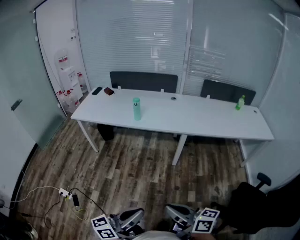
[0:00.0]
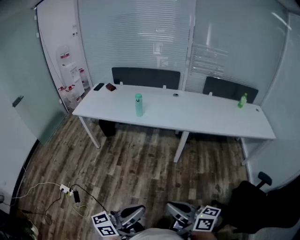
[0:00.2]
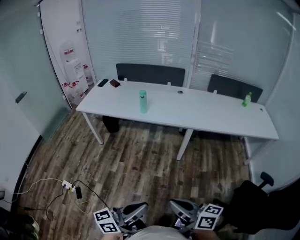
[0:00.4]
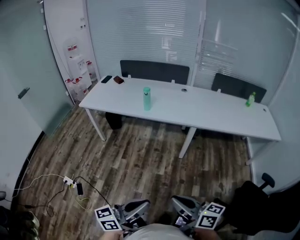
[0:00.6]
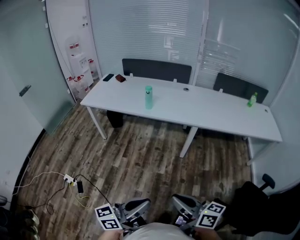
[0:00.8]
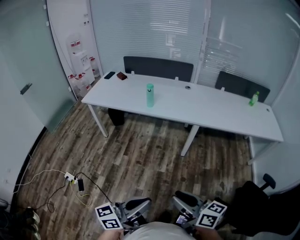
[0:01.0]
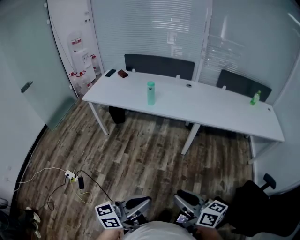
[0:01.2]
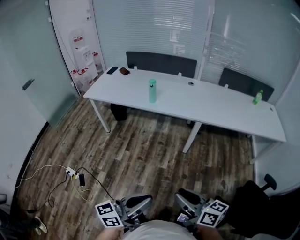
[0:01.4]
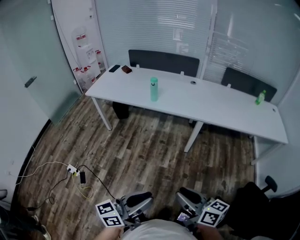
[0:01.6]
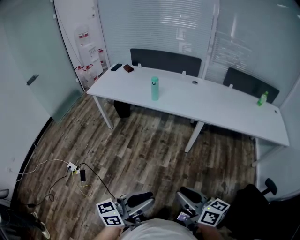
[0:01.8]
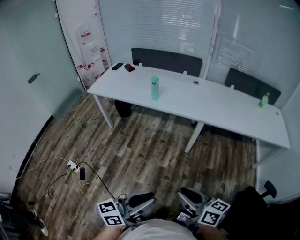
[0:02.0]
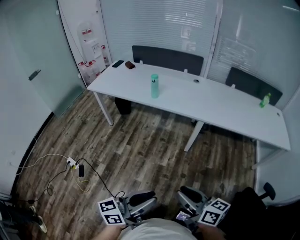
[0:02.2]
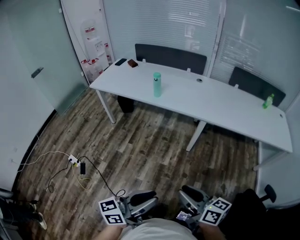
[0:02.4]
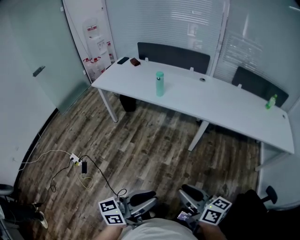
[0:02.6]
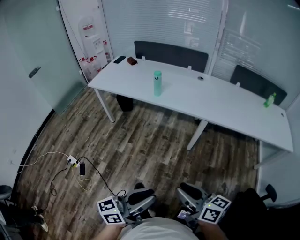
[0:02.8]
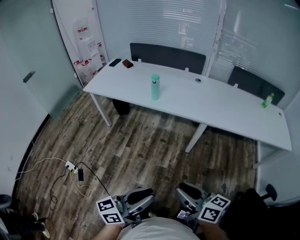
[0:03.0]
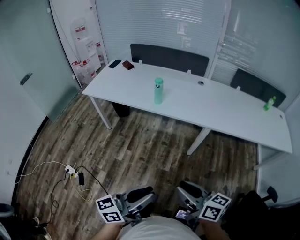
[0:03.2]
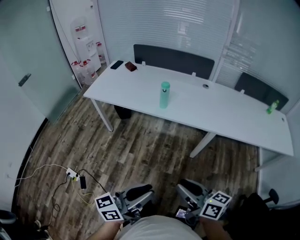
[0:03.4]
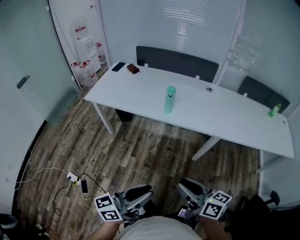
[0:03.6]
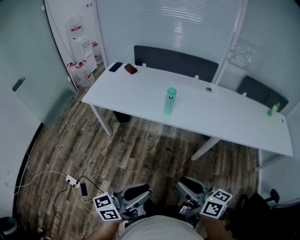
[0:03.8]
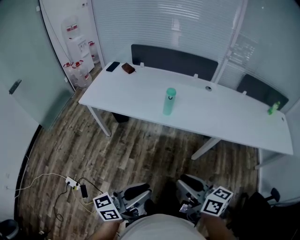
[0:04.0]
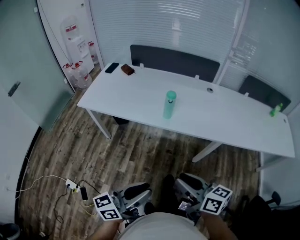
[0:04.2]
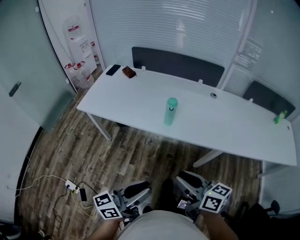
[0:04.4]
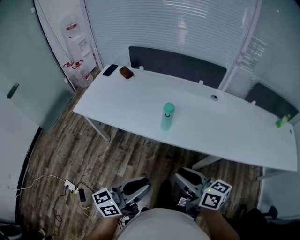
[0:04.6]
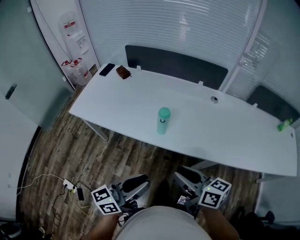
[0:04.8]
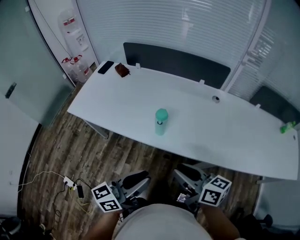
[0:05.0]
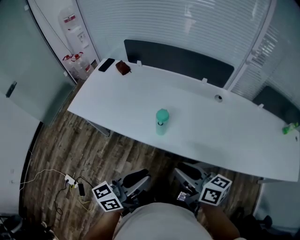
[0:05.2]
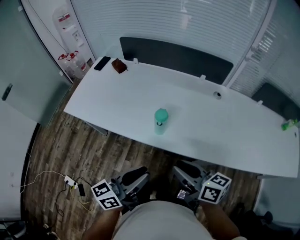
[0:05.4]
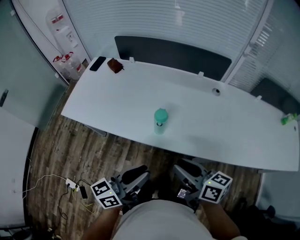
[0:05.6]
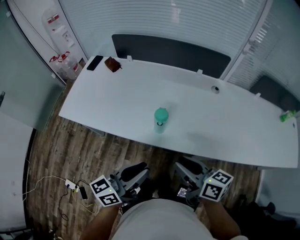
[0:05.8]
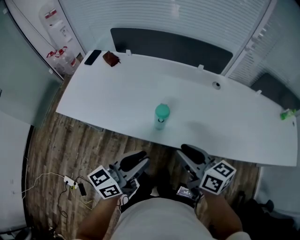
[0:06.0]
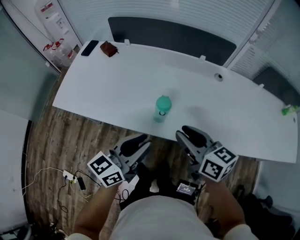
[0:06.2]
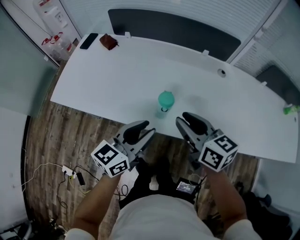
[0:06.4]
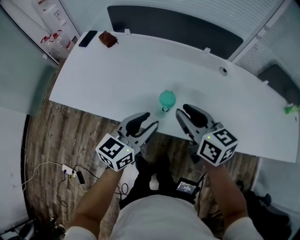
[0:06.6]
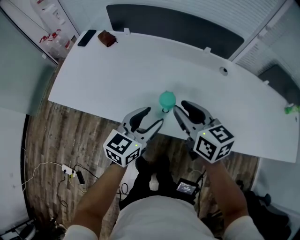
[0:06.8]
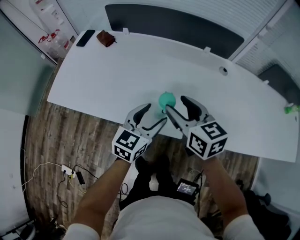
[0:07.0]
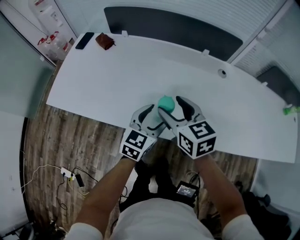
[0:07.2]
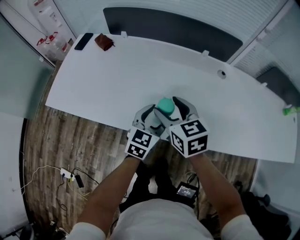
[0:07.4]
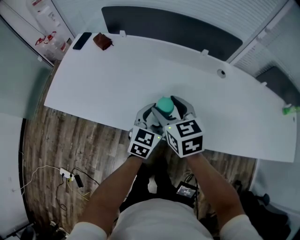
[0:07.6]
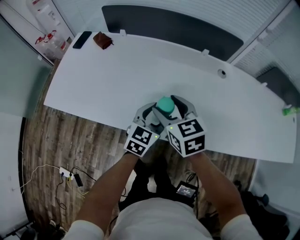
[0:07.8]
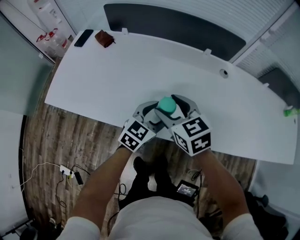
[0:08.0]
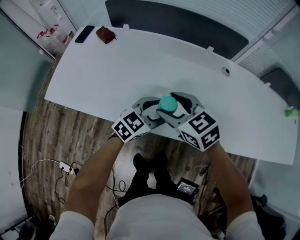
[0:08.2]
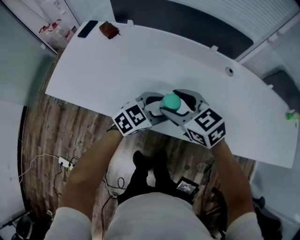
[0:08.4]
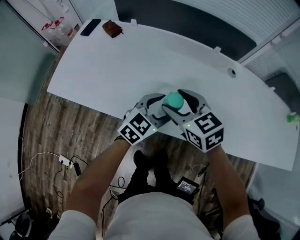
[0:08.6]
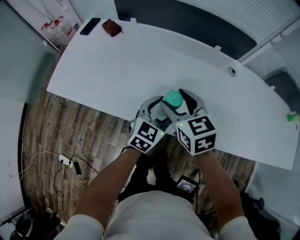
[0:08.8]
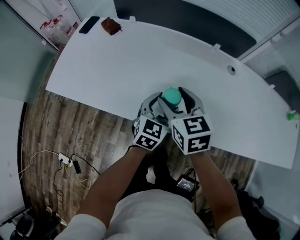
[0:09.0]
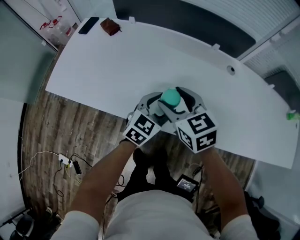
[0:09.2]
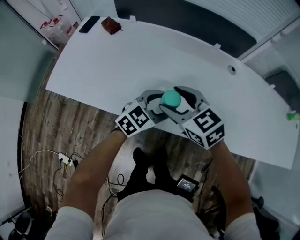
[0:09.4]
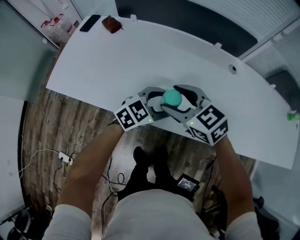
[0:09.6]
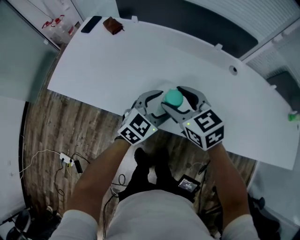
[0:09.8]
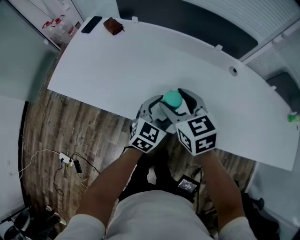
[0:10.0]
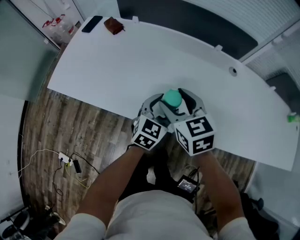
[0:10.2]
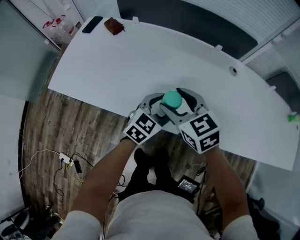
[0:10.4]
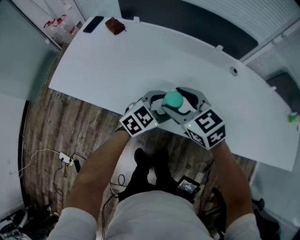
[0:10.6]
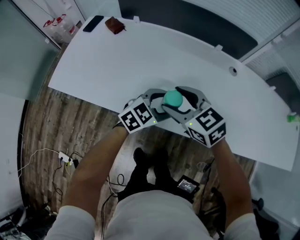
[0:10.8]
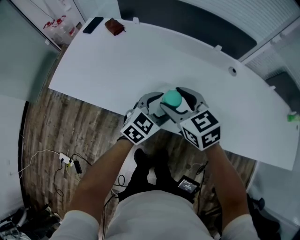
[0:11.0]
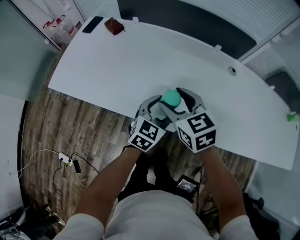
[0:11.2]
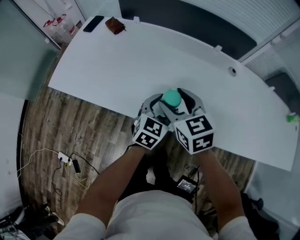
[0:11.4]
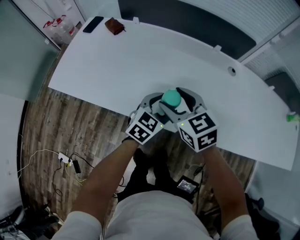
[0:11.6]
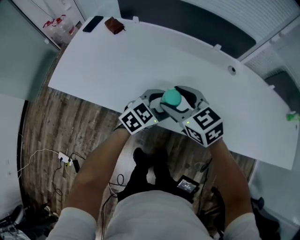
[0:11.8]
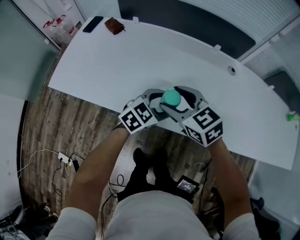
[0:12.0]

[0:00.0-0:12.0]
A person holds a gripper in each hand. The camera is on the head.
0:00.0 to 0:01.6: The right gripper changes place by about 5 cm, and opens its fingers.
0:01.6 to 0:03.0: Both grippers travel together forward, approximately 10 cm.
0:03.0 to 0:04.4: Both grippers move forward and to the left, approximately 30 cm.
0:04.4 to 0:06.0: The two grippers go approximately 25 cm forward.
0:06.0 to 0:07.6: The left gripper is displaced forward and downward by about 25 cm, turns by approximately 40 degrees, and opens its fingers; the right gripper moves forward, to the left and downward, approximately 20 cm, turns by roughly 30 degrees, and opens its fingers.
0:10.4 to 0:12.0: The grippers move only a little.

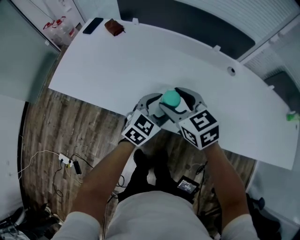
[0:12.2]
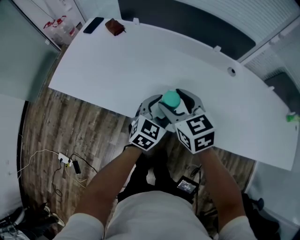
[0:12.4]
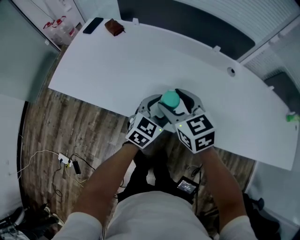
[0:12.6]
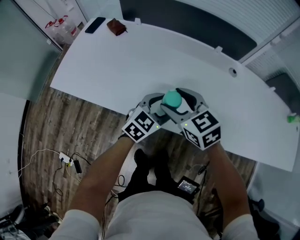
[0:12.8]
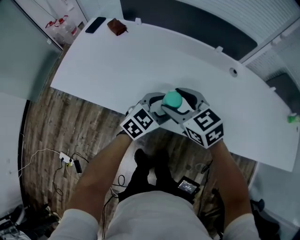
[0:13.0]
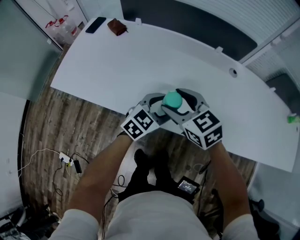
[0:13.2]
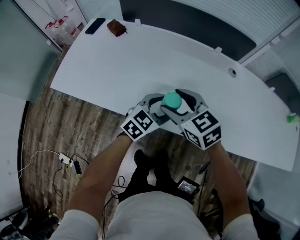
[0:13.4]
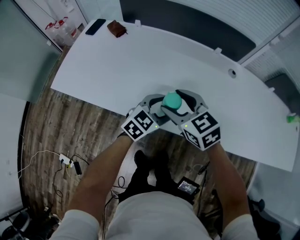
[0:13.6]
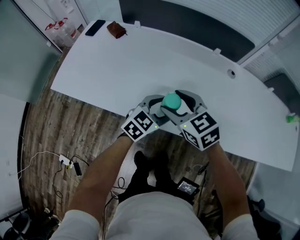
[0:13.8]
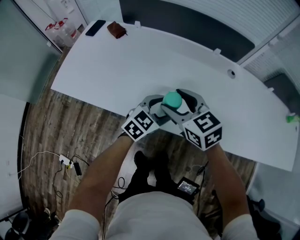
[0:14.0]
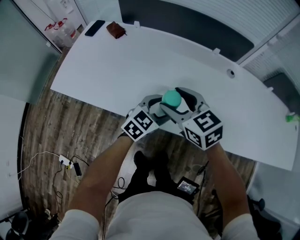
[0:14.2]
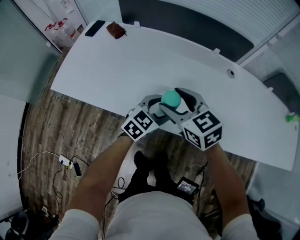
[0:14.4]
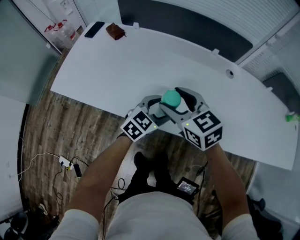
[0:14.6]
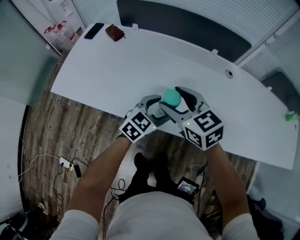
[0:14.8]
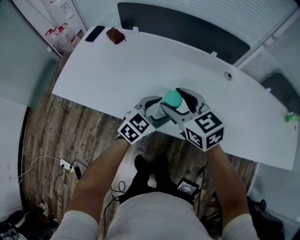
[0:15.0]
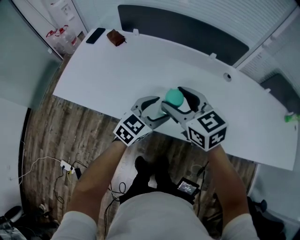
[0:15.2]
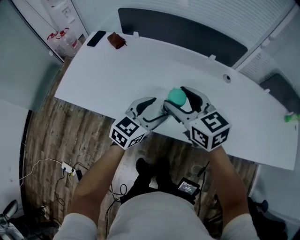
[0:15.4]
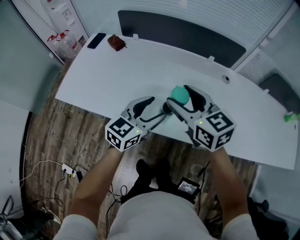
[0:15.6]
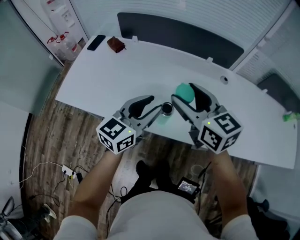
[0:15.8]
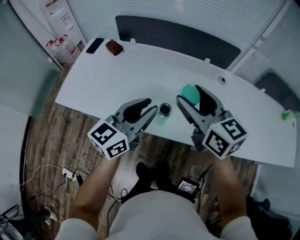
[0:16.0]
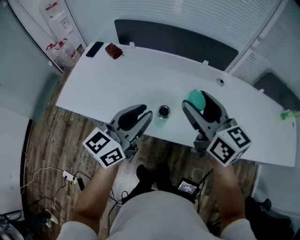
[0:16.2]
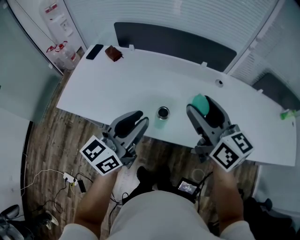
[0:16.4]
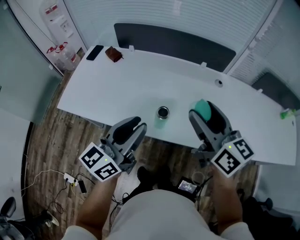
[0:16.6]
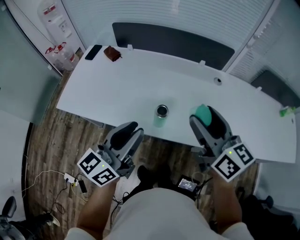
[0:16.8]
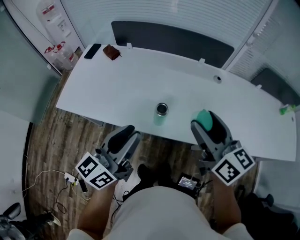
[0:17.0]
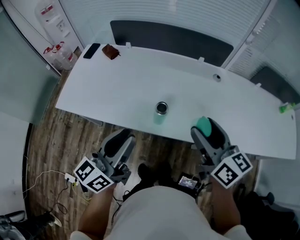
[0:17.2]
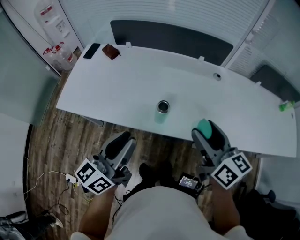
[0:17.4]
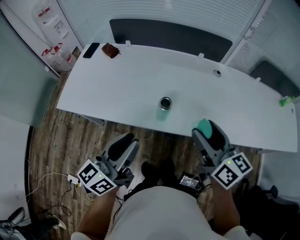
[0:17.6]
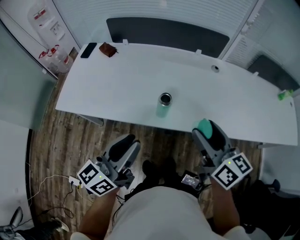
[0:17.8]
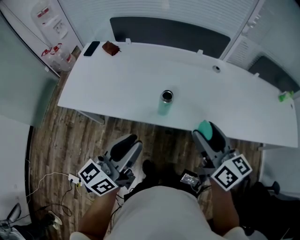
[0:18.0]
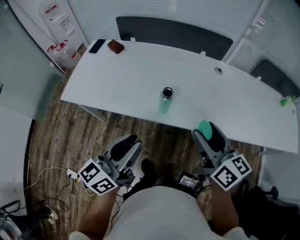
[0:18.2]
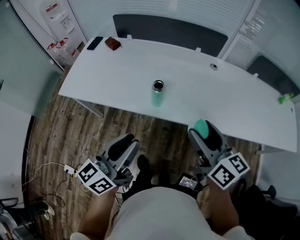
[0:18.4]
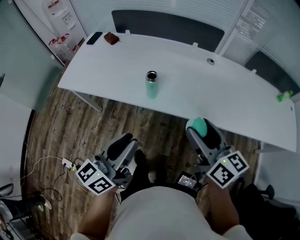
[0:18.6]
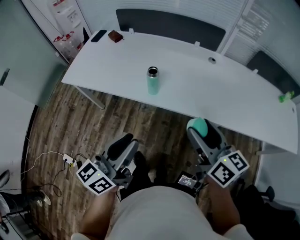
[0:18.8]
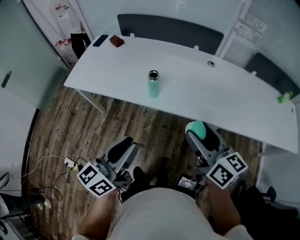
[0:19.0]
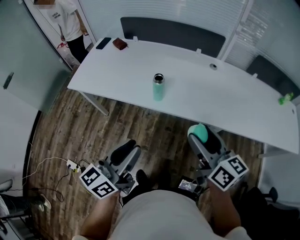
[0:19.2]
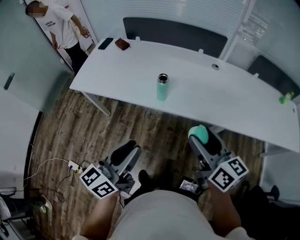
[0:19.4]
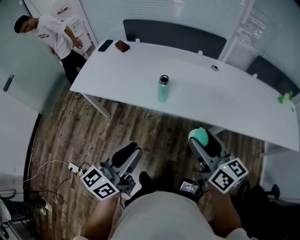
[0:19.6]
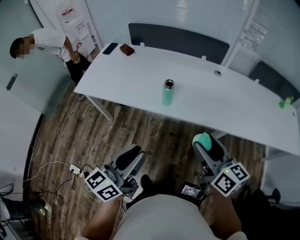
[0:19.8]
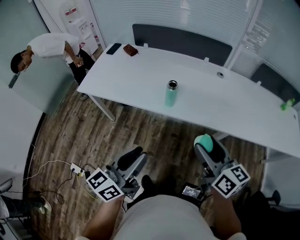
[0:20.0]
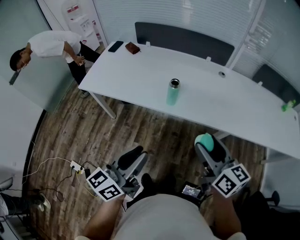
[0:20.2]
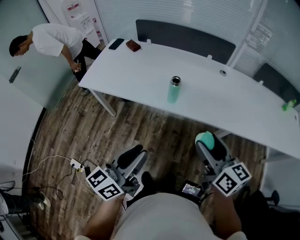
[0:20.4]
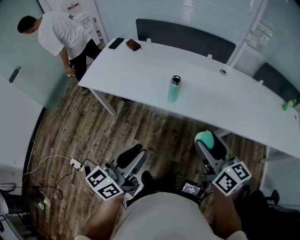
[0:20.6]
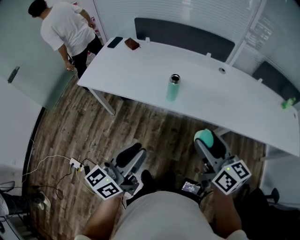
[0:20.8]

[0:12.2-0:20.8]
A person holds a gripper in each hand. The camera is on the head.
0:12.2 to 0:15.0: The grippers stay close to where they were, moving slightly.
0:15.0 to 0:16.6: The left gripper goes about 25 cm upward, backward and to the left, points its fingers about 30 degrees further upward, and closes up; the right gripper is displaced upward and to the right by roughly 15 cm, and turns by approximately 30 degrees.
0:16.6 to 0:18.0: The right gripper travels backward and downward by some 15 cm. Meanwhile the left gripper heads backward, covering about 10 cm.
0:18.0 to 0:19.4: The two grippers go roughly 15 cm backward.
0:19.4 to 0:20.8: The grippers stay close to where they were, moving slightly.

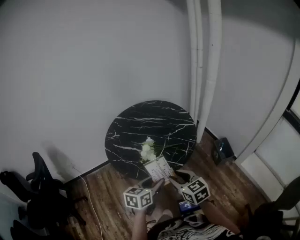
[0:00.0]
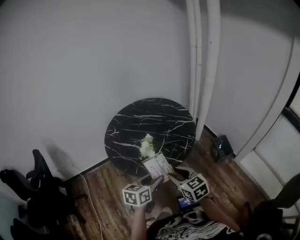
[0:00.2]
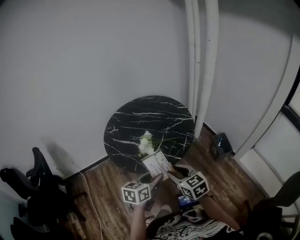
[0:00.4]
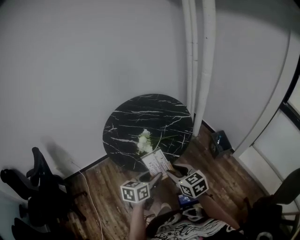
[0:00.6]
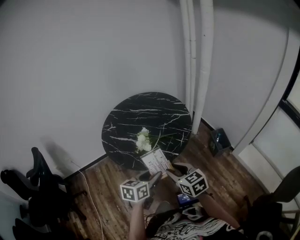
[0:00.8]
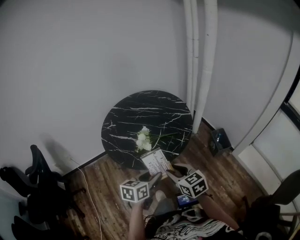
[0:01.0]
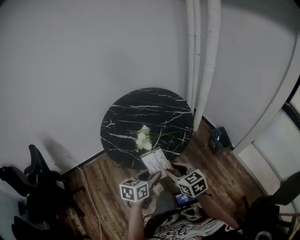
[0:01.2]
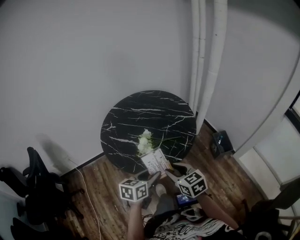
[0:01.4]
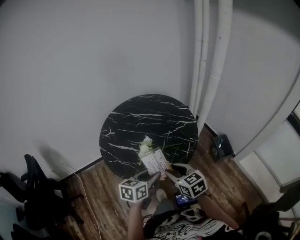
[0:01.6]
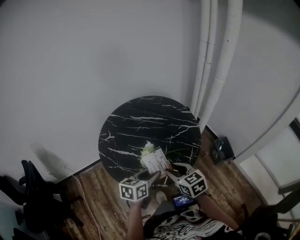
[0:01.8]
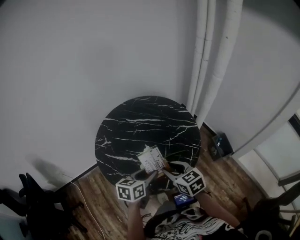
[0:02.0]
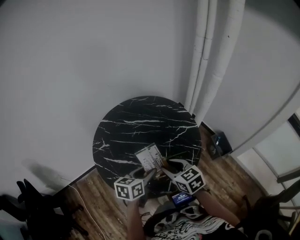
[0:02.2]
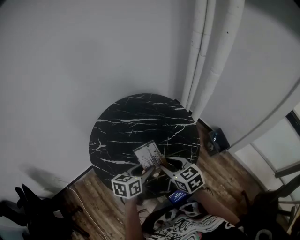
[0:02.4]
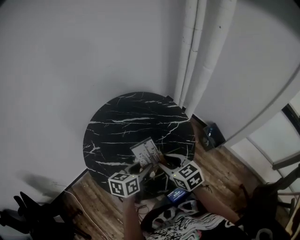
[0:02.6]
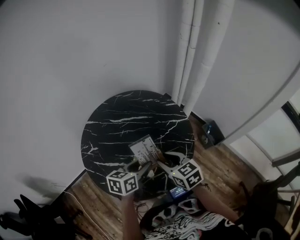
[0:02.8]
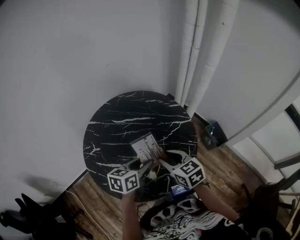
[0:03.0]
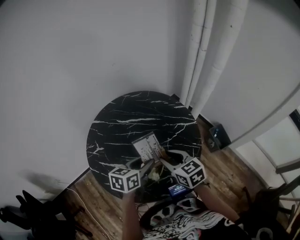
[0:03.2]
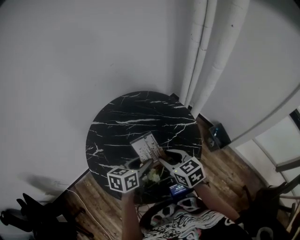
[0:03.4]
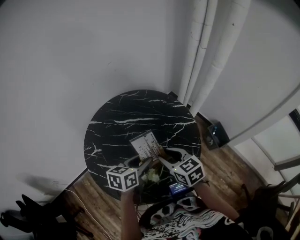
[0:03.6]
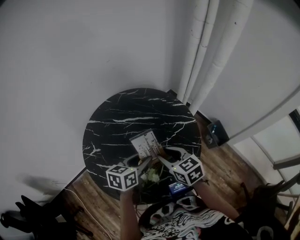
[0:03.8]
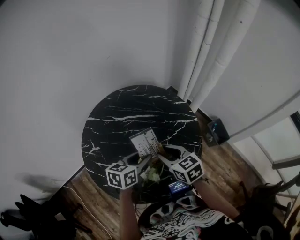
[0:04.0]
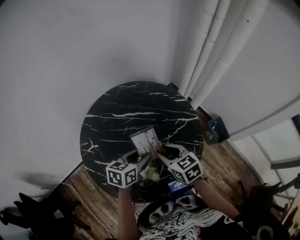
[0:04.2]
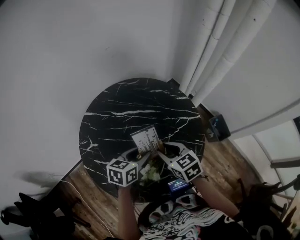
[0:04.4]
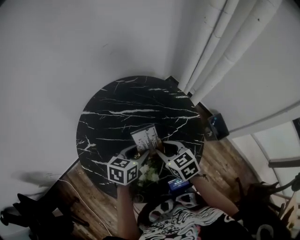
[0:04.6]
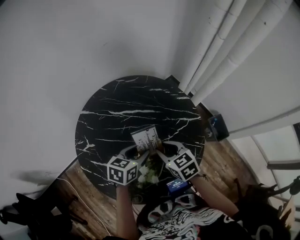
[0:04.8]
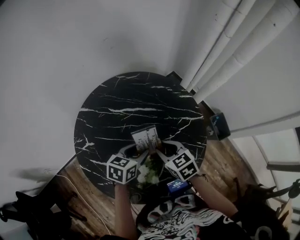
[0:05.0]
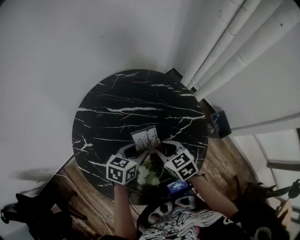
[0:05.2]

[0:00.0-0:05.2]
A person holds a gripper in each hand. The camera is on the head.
0:00.0 to 0:01.8: The grippers both shift forward by roughly 15 cm.
0:01.8 to 0:03.4: The grippers both shift forward by roughly 15 cm.
0:03.4 to 0:05.2: The two grippers go some 15 cm downward and forward.
